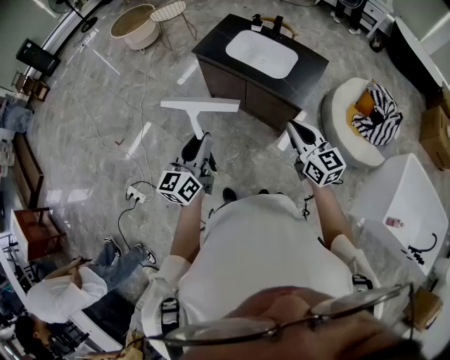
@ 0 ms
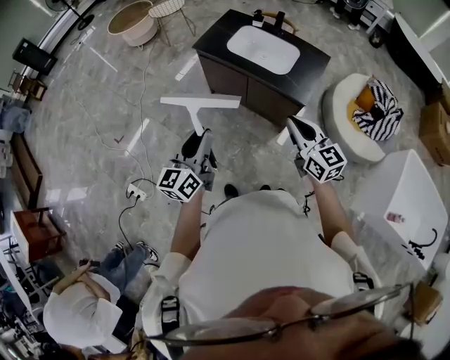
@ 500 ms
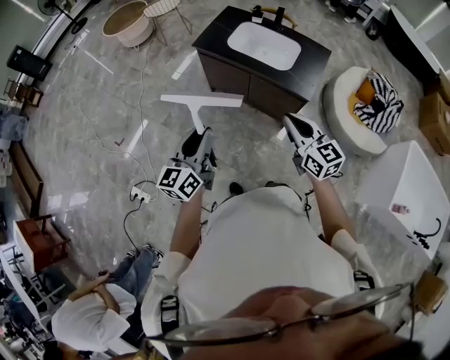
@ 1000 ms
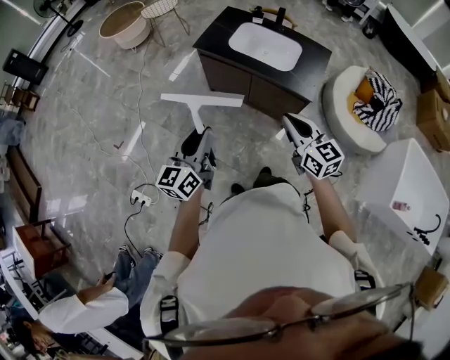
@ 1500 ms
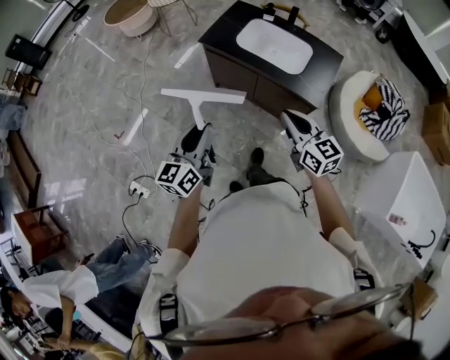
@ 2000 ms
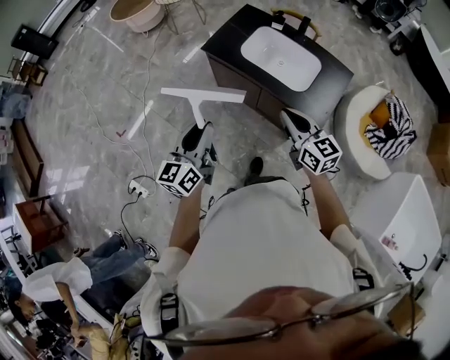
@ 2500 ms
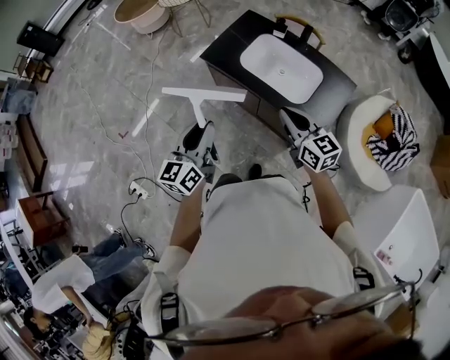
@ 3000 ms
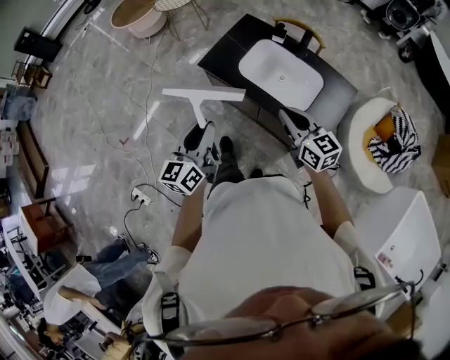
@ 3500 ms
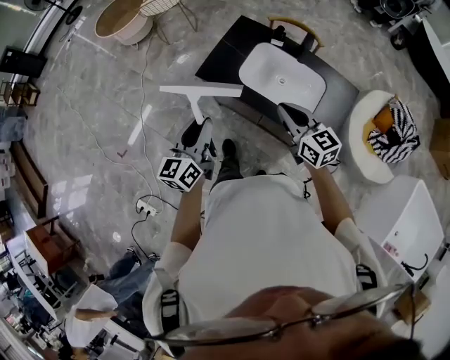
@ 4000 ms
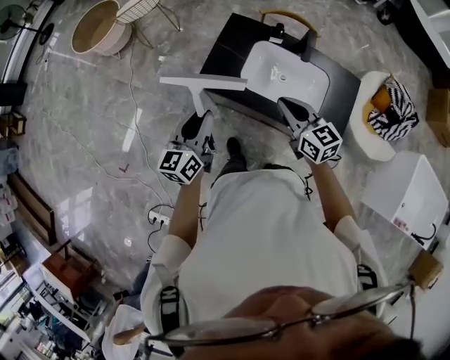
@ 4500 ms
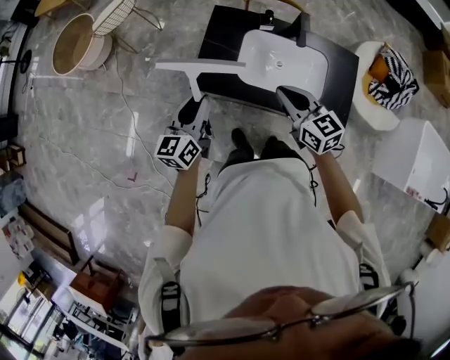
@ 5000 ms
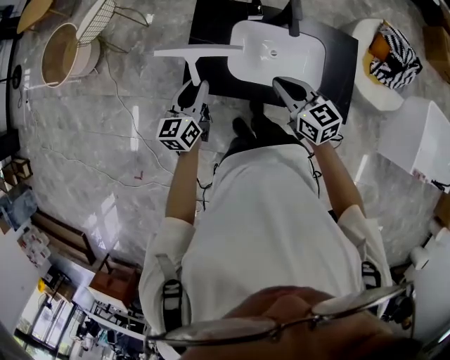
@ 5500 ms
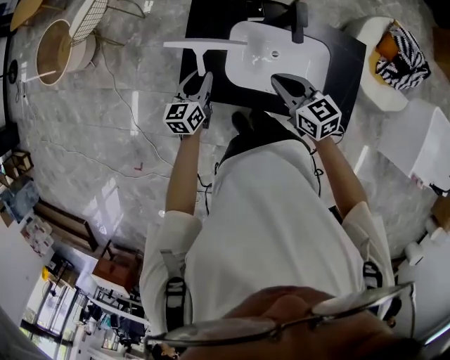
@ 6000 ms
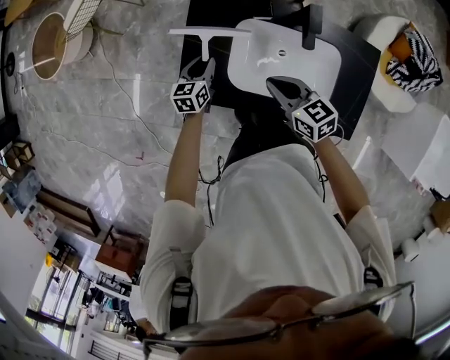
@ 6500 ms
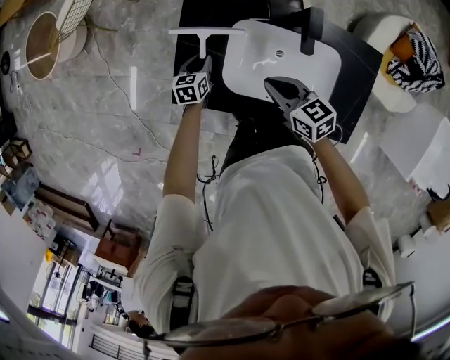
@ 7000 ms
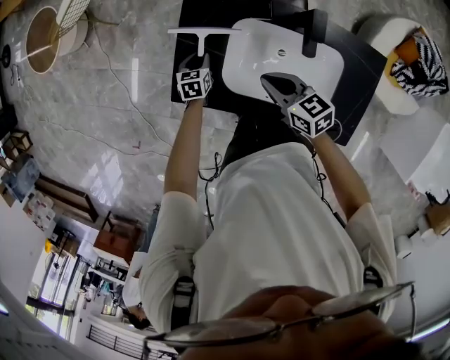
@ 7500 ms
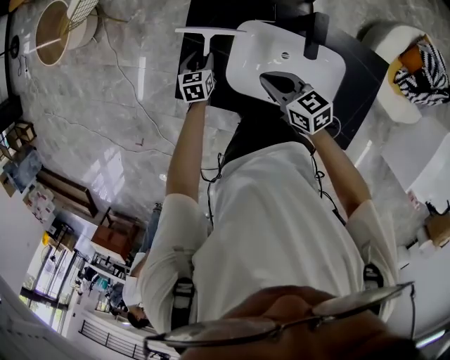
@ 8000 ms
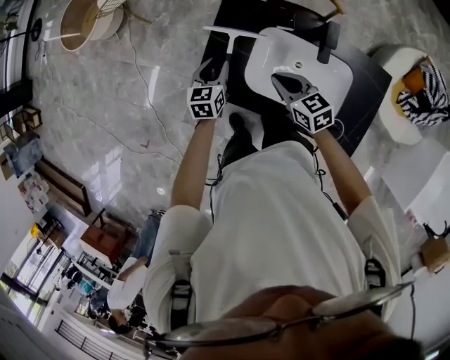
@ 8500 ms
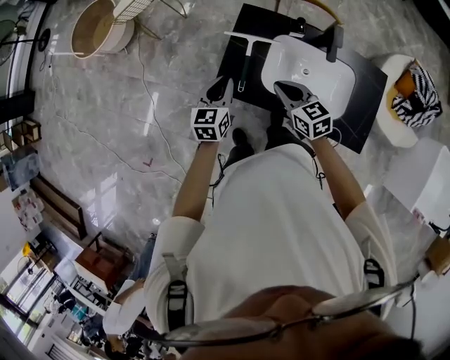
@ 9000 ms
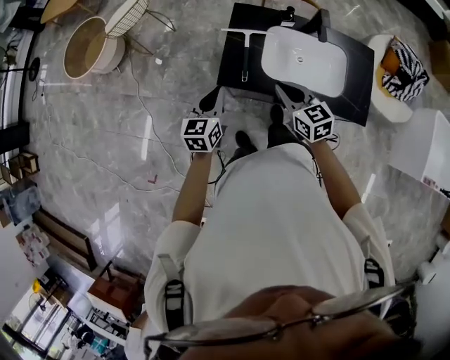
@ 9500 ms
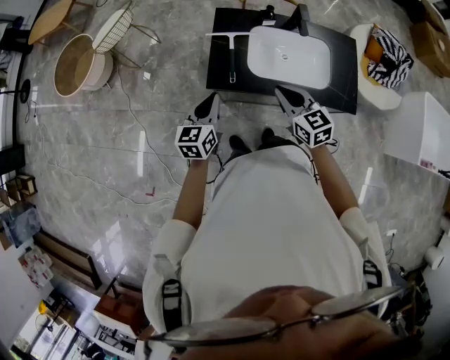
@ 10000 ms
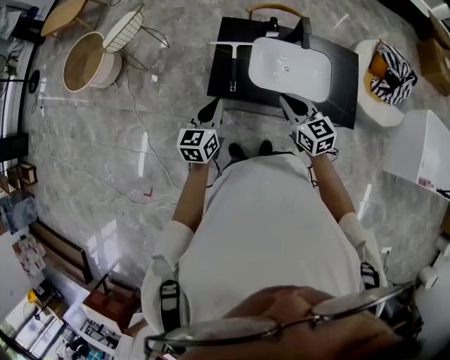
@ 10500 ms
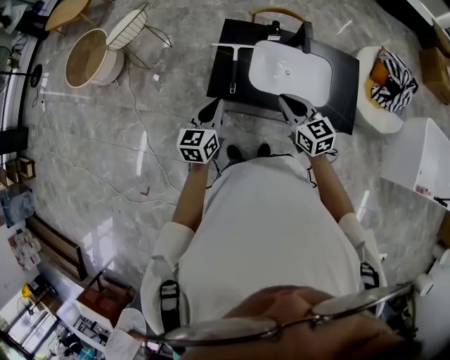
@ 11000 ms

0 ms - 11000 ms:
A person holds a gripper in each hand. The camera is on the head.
0 ms - 2000 ms: The two grippers go roughly 10 cm forward and to the left.
2000 ms - 3500 ms: The left gripper heads forward and to the right, covering approximately 20 cm. The right gripper travels forward by approximately 20 cm.
3500 ms - 5500 ms: The left gripper moves forward, roughly 35 cm, and changes its angle by about 30 degrees, while the right gripper shifts roughly 20 cm forward, and rotates some 20 degrees.
5500 ms - 7500 ms: The right gripper shifts about 20 cm downward and forward, and turns by approximately 20 degrees. The left gripper travels downward and forward by about 35 cm, and tips its fingers downward by about 40 degrees.
7500 ms - 9000 ms: The right gripper moves to the left and upward, roughly 15 cm. Meanwhile the left gripper is displaced upward by roughly 25 cm, and rotates some 30 degrees.
9000 ms - 11000 ms: Both grippers move backward and upward, some 15 cm.

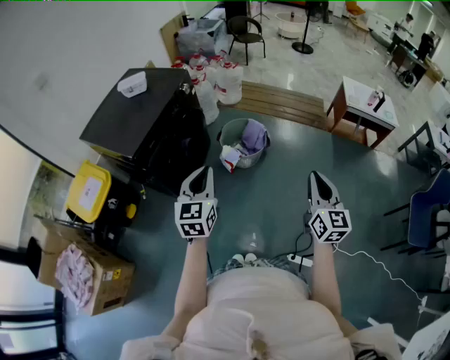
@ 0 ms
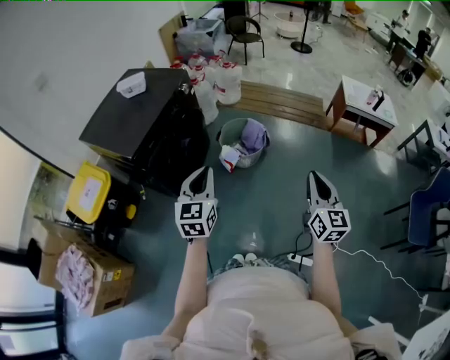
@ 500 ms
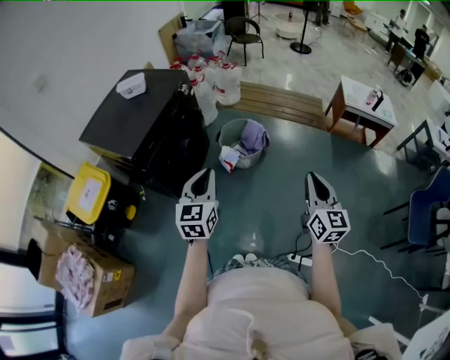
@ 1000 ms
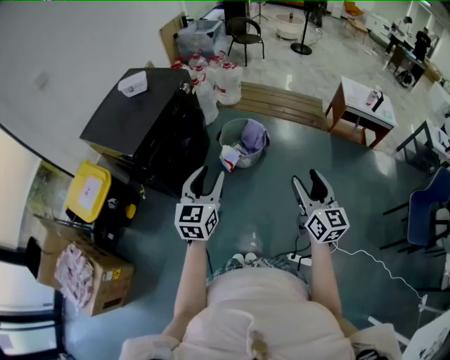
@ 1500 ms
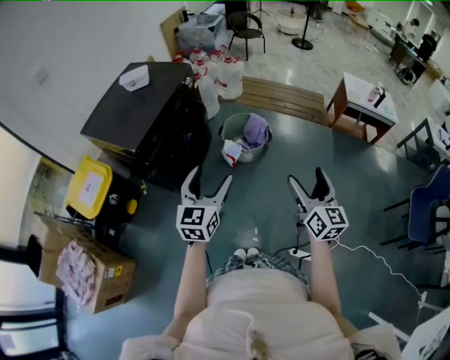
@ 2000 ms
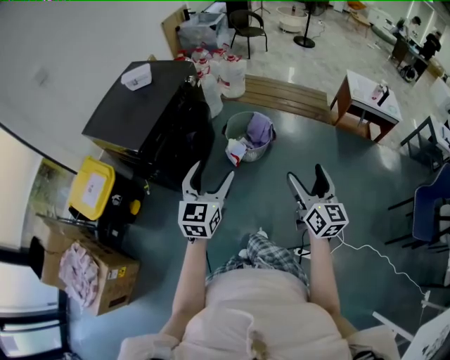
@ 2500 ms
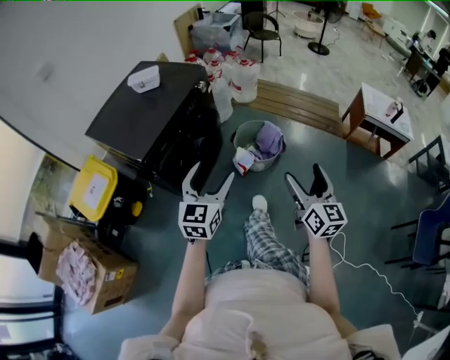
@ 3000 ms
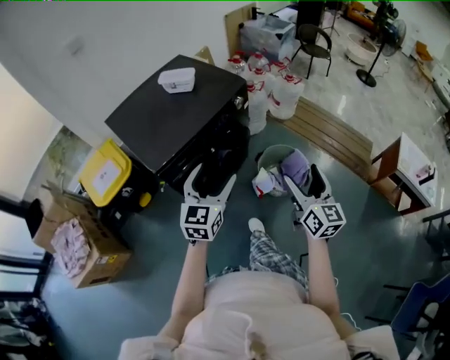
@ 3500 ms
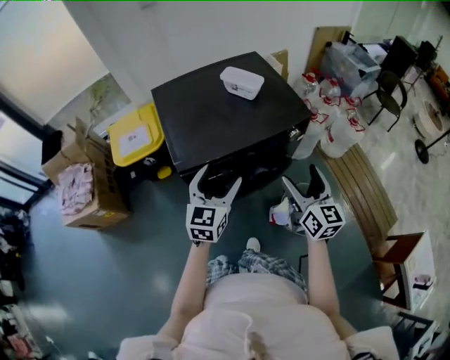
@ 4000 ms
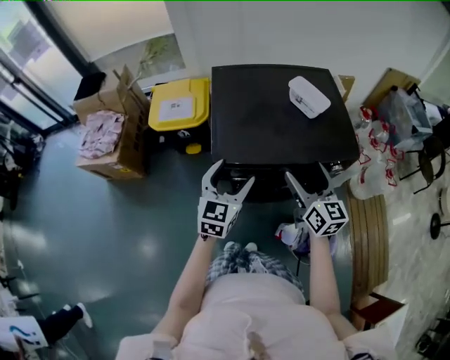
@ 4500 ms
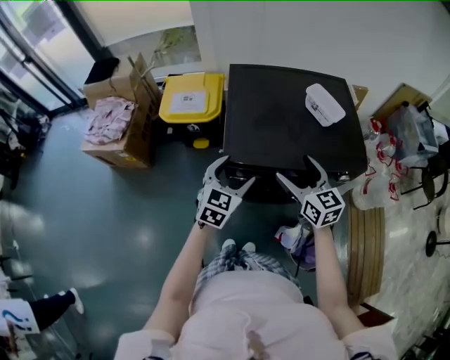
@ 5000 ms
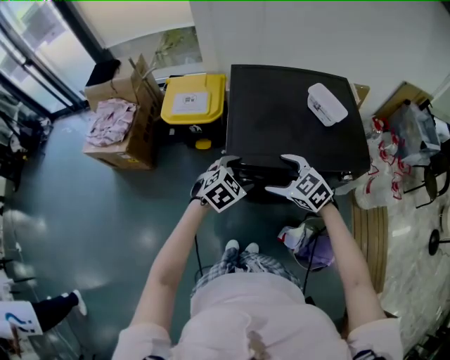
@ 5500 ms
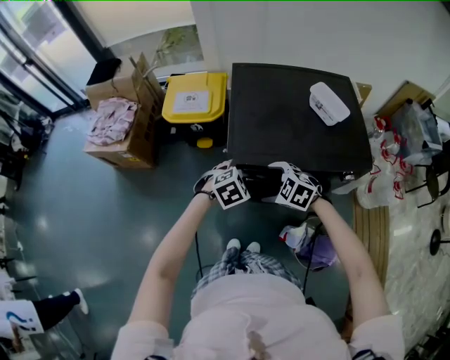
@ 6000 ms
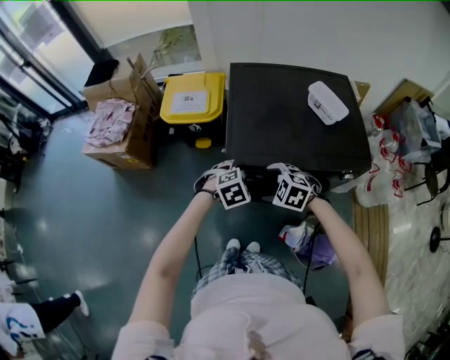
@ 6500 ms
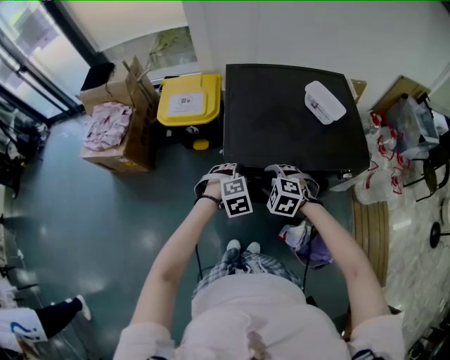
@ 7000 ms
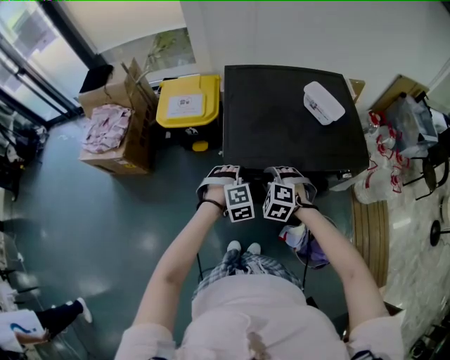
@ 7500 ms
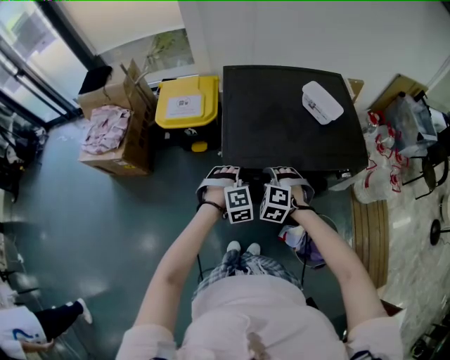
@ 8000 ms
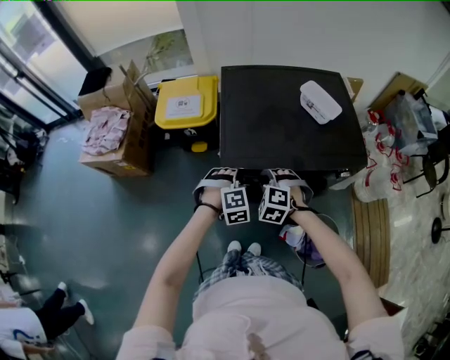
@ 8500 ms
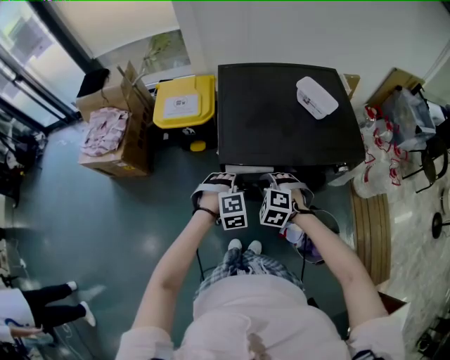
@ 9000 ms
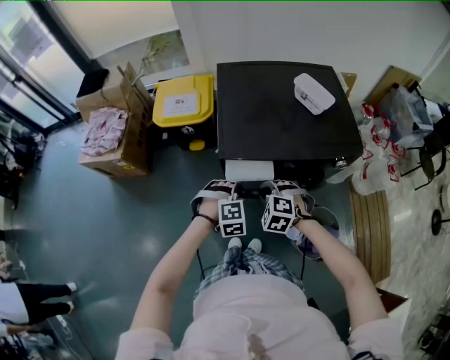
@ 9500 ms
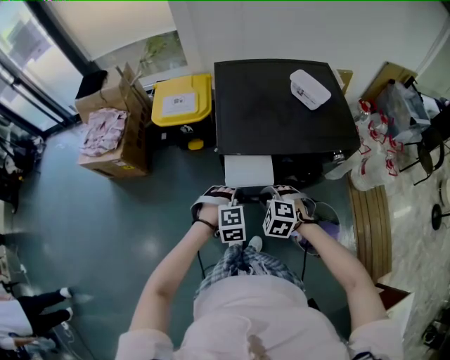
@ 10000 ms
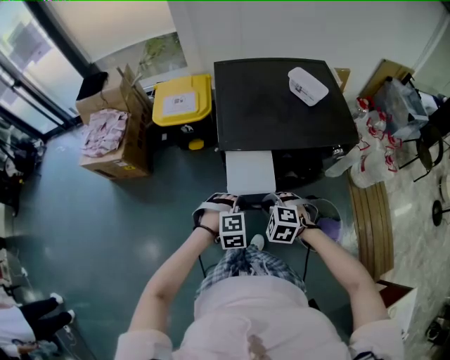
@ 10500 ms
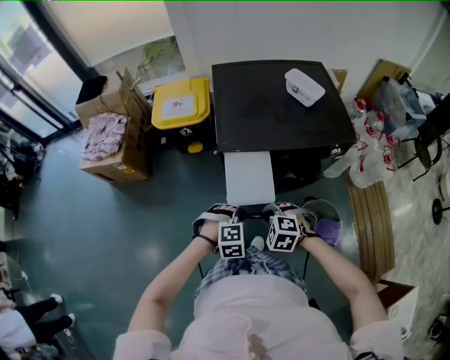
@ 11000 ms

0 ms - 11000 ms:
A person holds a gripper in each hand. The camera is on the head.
0 ms - 2000 ms: The right gripper moves to the left, about 5 cm, and opens; the left gripper opens its fingers.
2000 ms - 3500 ms: The two grippers go some 30 cm forward. The right gripper changes its angle by roughly 20 degrees.
3500 ms - 5500 ms: The right gripper ends up approximately 40 cm from where it was, and tilts its fingers roughly 40 degrees downward, while the left gripper changes place by some 25 cm, and tilts its fingers approximately 40 degrees downward.
5500 ms - 7500 ms: Both grippers travel together downward, approximately 5 cm. The right gripper swivels about 40 degrees, and closes up; the left gripper changes its angle by some 40 degrees, and closes up.
7500 ms - 9000 ms: The grippers stay close to where they were, moving slightly.
9000 ms - 11000 ms: The two grippers go approximately 20 cm backward.

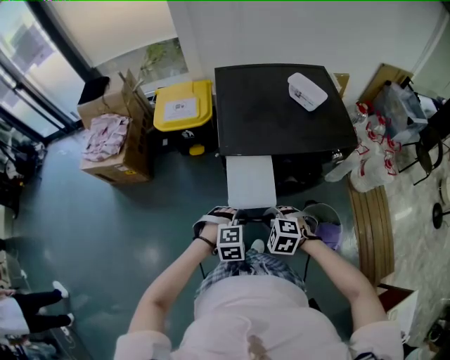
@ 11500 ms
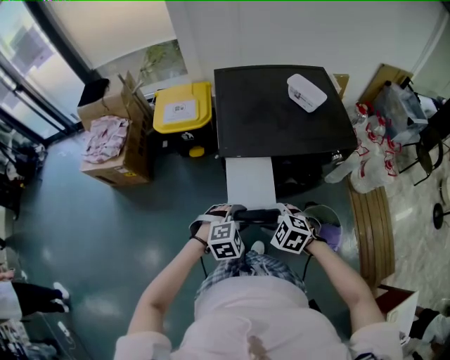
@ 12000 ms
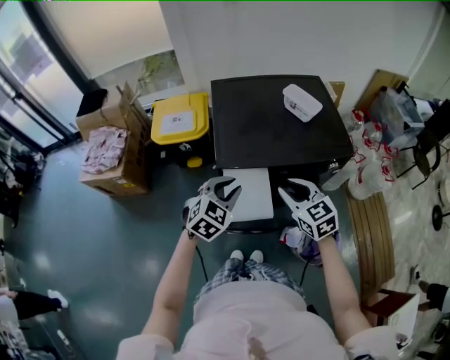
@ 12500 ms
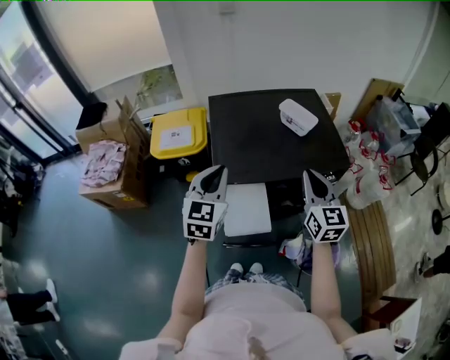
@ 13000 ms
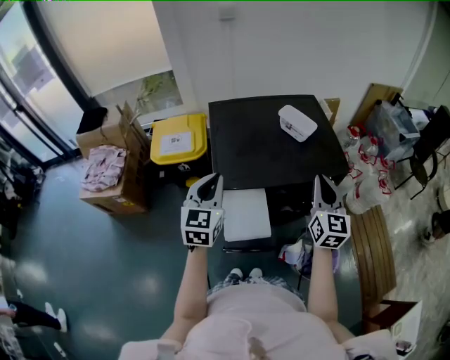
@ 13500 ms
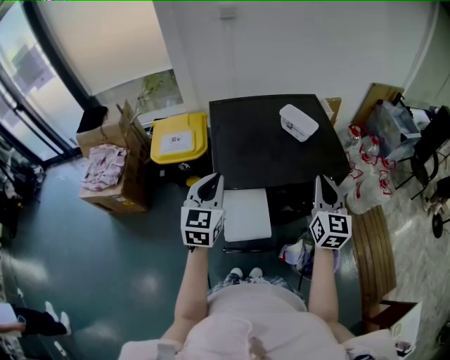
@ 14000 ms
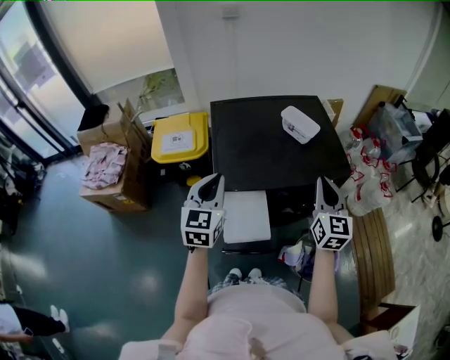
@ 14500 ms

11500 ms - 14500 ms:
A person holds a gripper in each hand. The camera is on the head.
11500 ms - 13000 ms: The left gripper shifts some 30 cm upward and forward, points its fingers roughly 50 degrees further upward, and opens, then closes again. Meanwhile the right gripper goes some 35 cm upward, forward and to the right, points its fingers some 60 degrees further upward, and opens, then closes again.
13000 ms - 14500 ms: There are only small adjustments of the grippers.

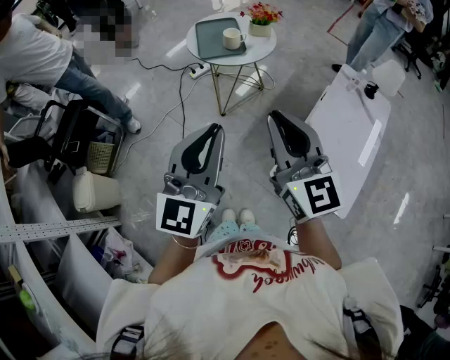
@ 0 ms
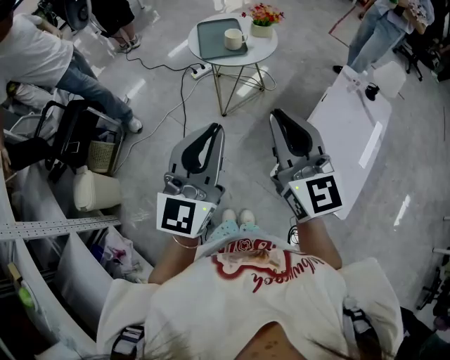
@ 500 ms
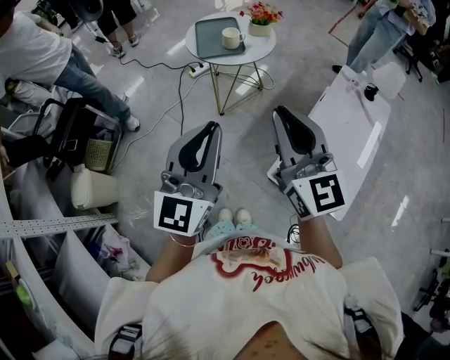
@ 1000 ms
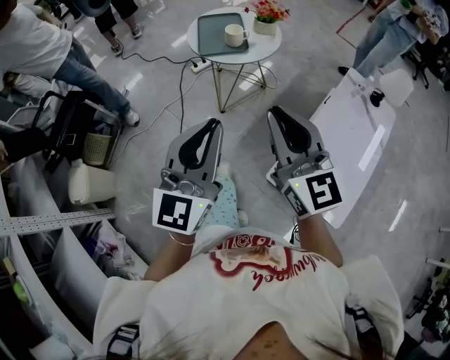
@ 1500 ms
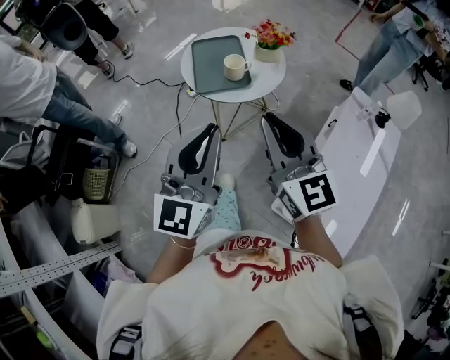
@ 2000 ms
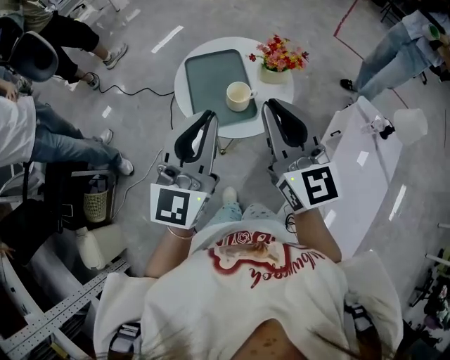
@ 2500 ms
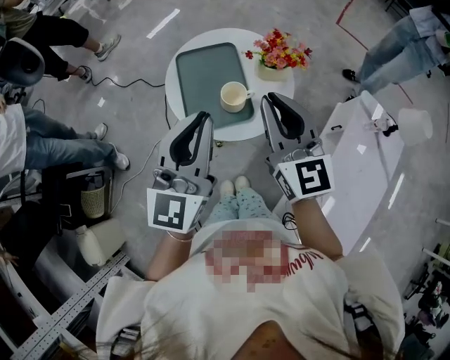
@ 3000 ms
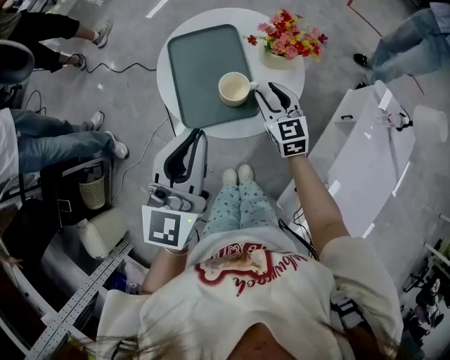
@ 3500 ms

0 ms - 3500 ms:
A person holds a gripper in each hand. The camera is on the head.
0 ms - 2000 ms: Both grippers travel together forward, about 25 cm.
2000 ms - 3500 ms: The right gripper moves forward and downward, approximately 50 cm, swivels roughly 30 degrees, and opens its fingers. Meanwhile the left gripper heads forward, covering about 25 cm.
